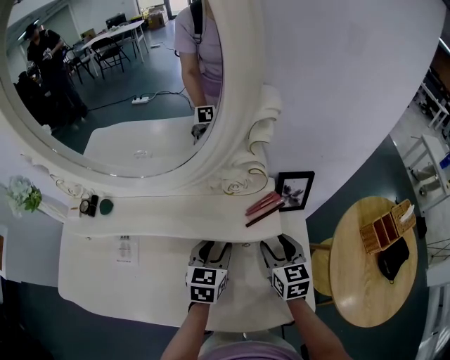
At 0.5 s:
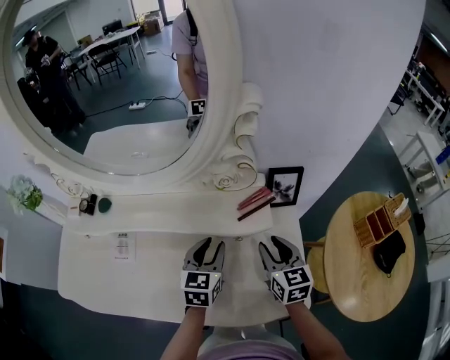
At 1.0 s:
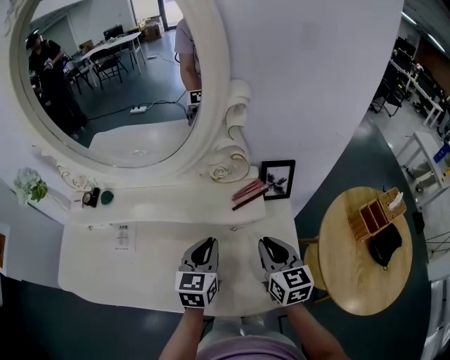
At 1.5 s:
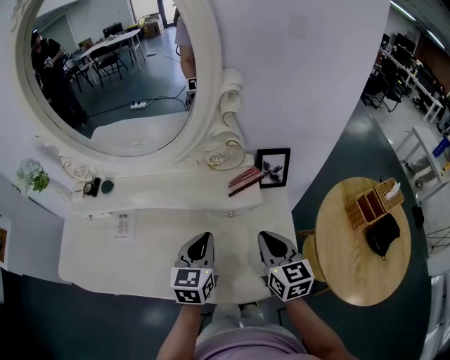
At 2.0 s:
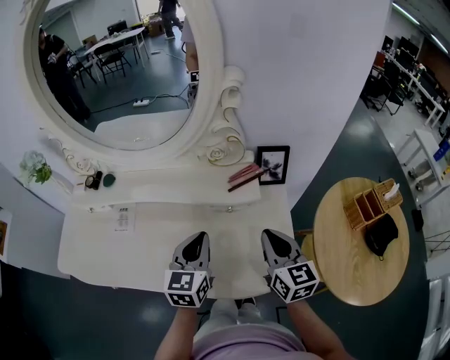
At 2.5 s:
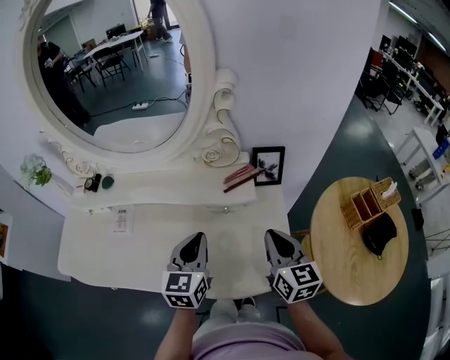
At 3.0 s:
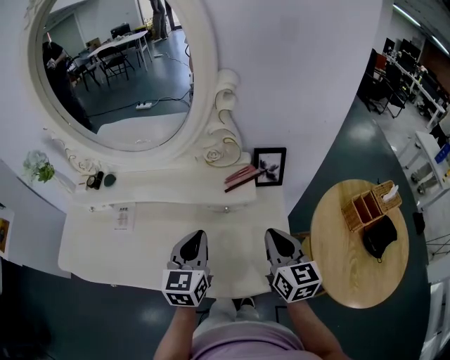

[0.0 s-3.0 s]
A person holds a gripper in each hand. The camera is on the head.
0.0 to 1.5 s: Both grippers move backward and upward, approximately 10 cm. The right gripper closes up, while the left gripper closes up.
1.5 to 3.0 s: The right gripper ends up approximately 5 cm from where it was.

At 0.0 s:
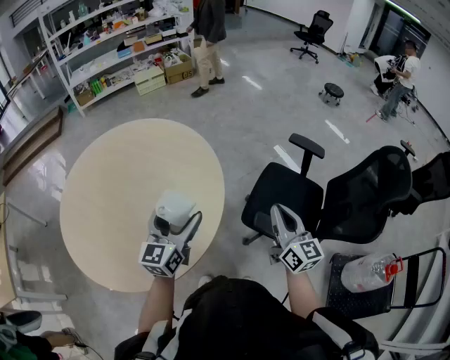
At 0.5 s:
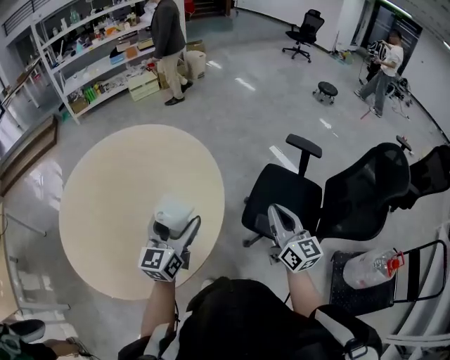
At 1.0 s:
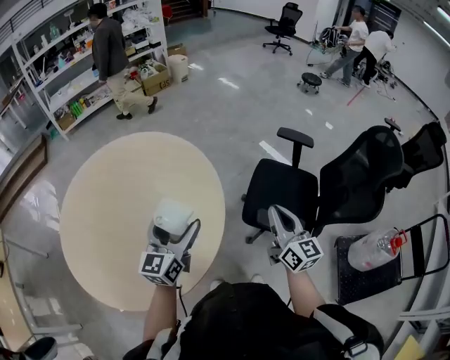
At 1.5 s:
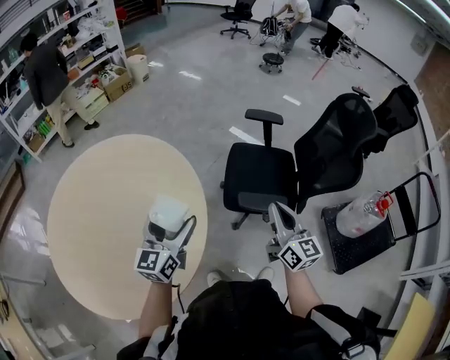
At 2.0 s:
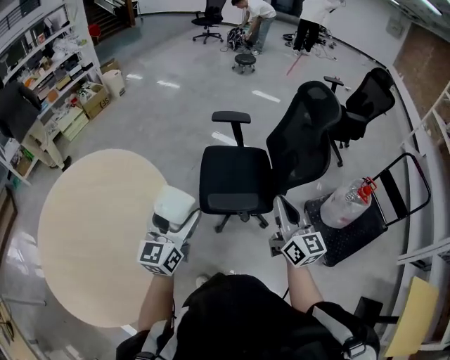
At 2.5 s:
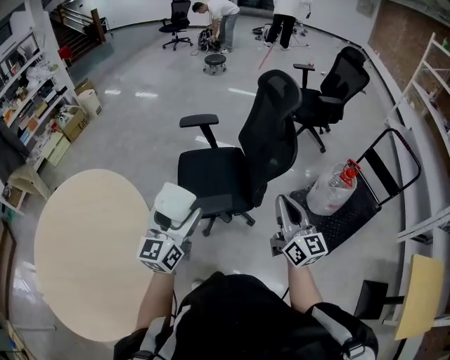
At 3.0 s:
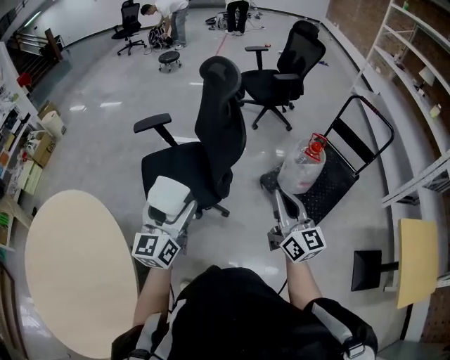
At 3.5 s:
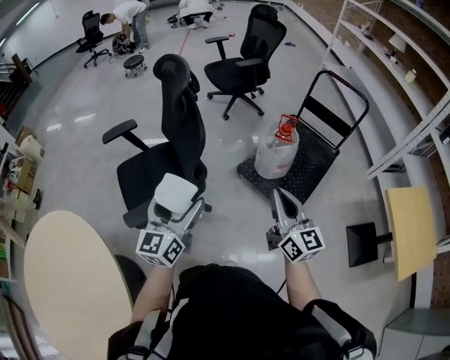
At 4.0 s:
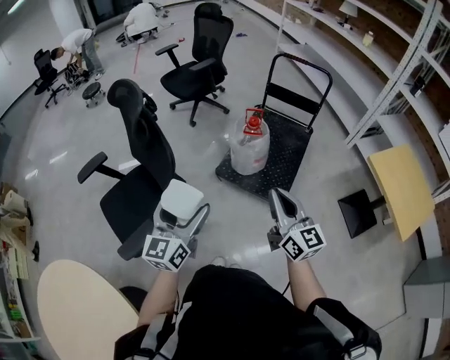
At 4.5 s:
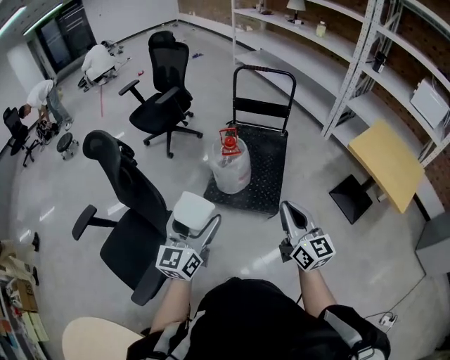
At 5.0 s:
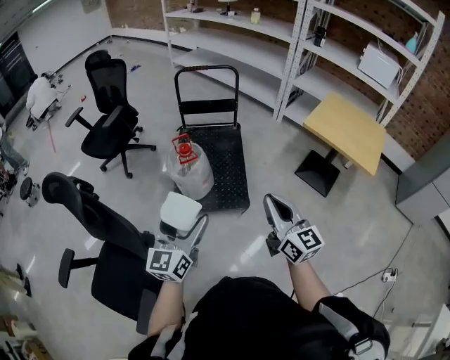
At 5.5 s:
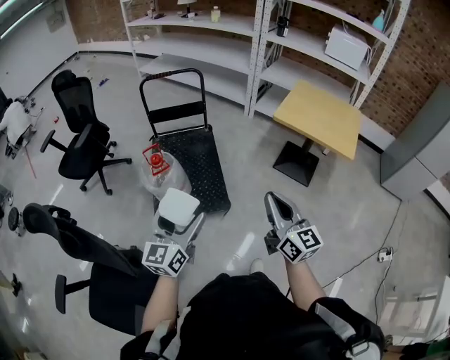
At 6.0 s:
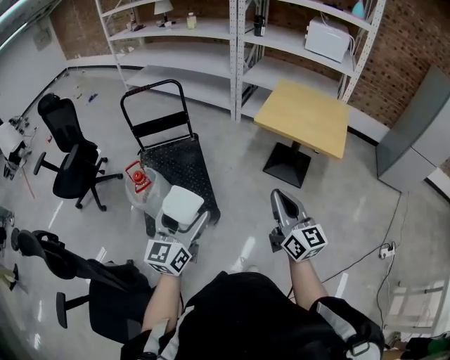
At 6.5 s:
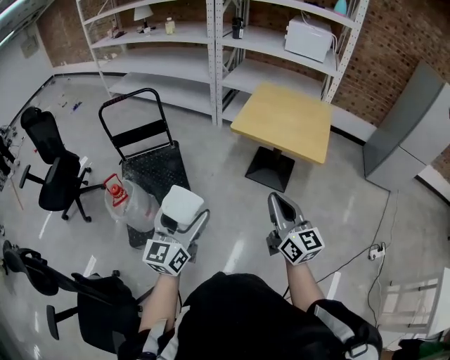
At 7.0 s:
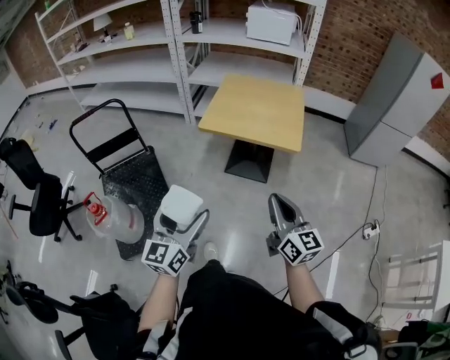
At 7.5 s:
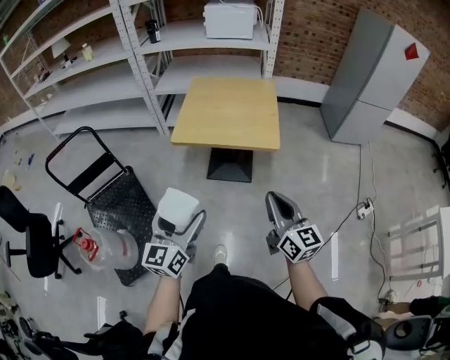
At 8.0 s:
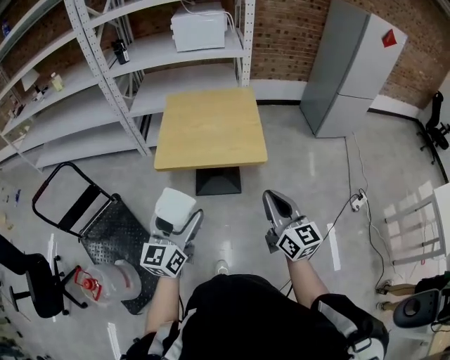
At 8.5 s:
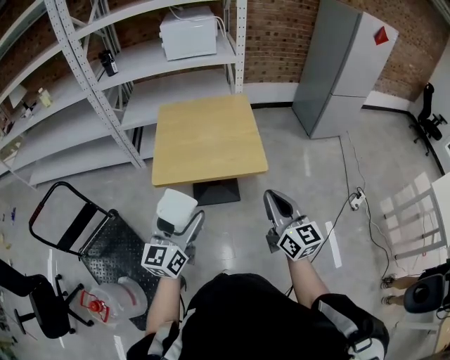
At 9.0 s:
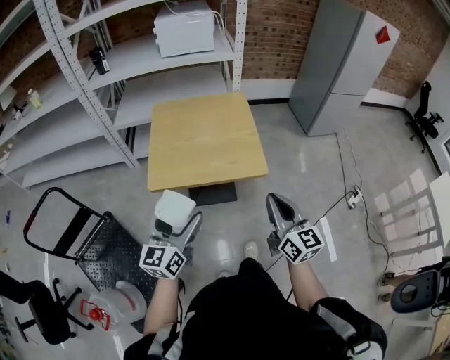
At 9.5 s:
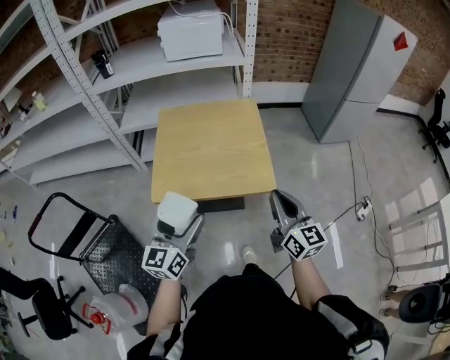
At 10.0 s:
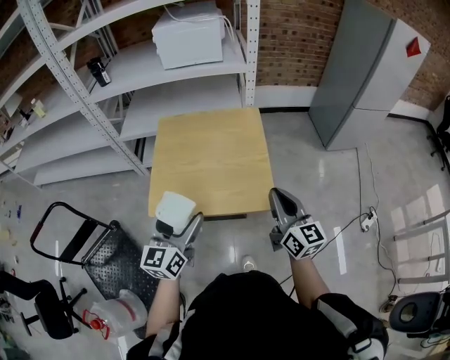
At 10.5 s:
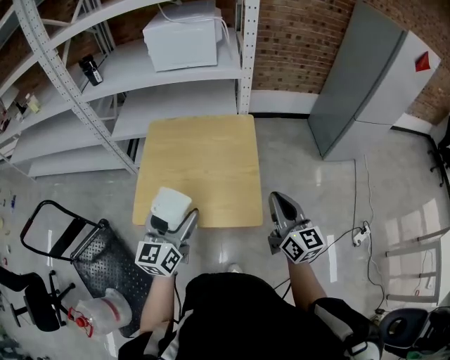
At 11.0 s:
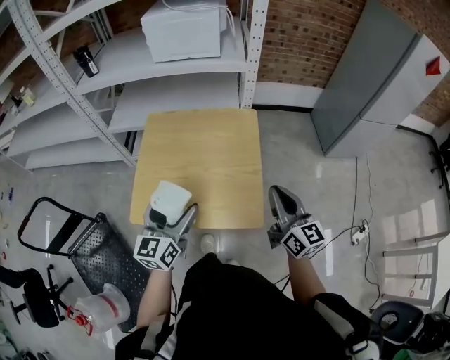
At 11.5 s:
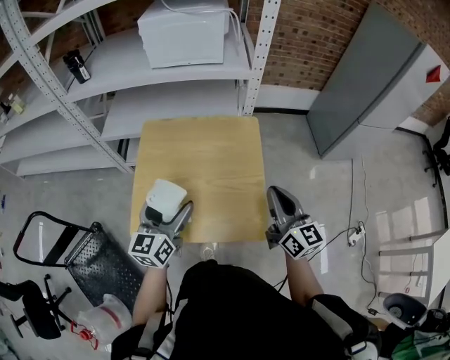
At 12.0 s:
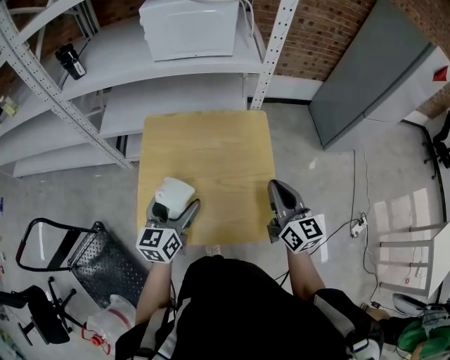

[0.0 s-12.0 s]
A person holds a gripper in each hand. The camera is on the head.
0.0 to 2.0 s: The left gripper changes place by some 15 cm, and swivels about 30 degrees. Meanwhile the right gripper shifts by approximately 20 cm, and changes its angle by approximately 30 degrees.
2.0 to 4.0 s: The left gripper ends up approximately 50 cm from where it was, and turns by some 50 degrees, while the right gripper moves approximately 40 cm, and rotates approximately 40 degrees.
4.0 to 6.0 s: The right gripper changes place by some 30 cm, and swivels roughly 50 degrees, while the left gripper ends up about 35 cm from where it was, and turns by about 50 degrees.
6.0 to 8.0 s: The left gripper changes place by approximately 40 cm, and swivels approximately 30 degrees, while the right gripper changes place by roughly 30 cm, and changes its angle by roughly 30 degrees.
8.0 to 10.0 s: Both grippers move forward, roughly 25 cm.
10.0 to 12.0 s: The right gripper heads forward, covering about 20 cm; the left gripper travels forward and downward by some 20 cm.

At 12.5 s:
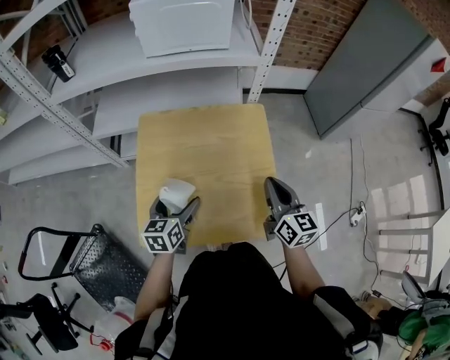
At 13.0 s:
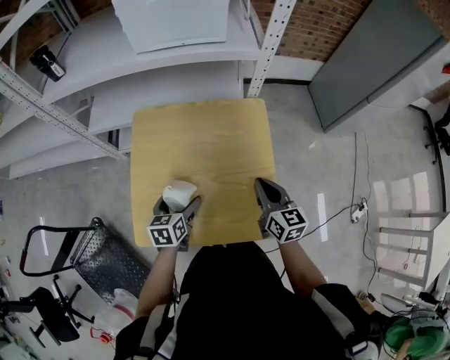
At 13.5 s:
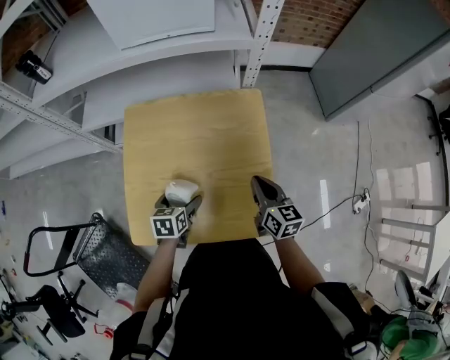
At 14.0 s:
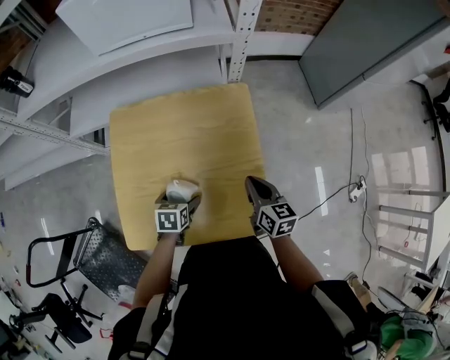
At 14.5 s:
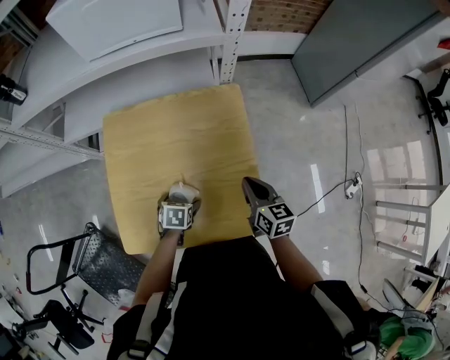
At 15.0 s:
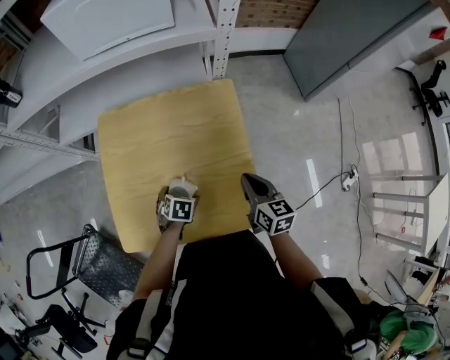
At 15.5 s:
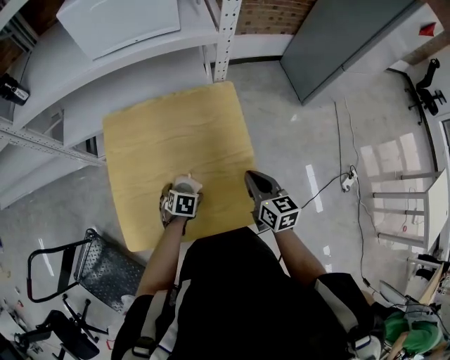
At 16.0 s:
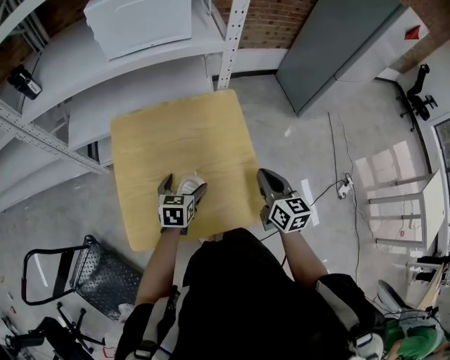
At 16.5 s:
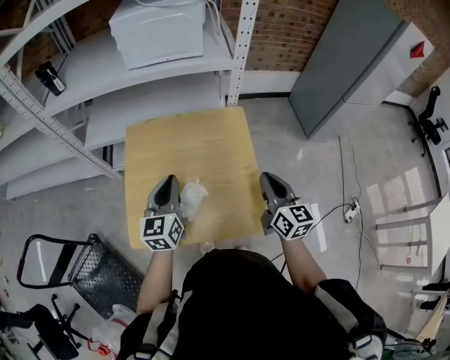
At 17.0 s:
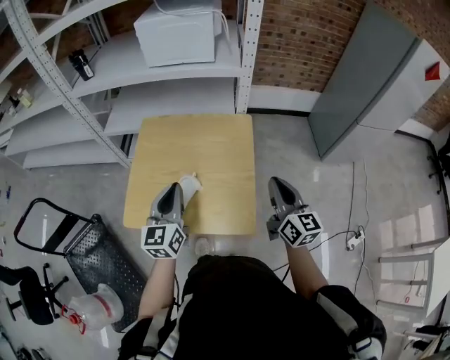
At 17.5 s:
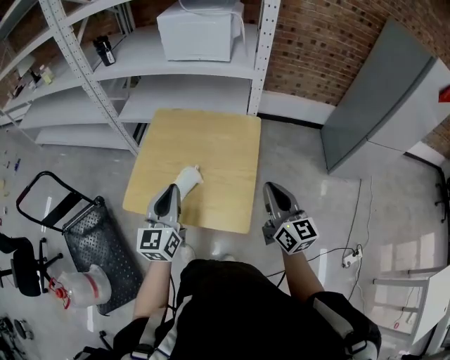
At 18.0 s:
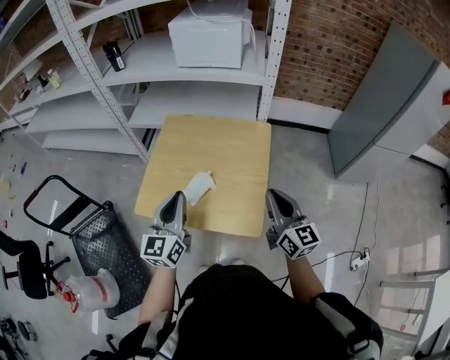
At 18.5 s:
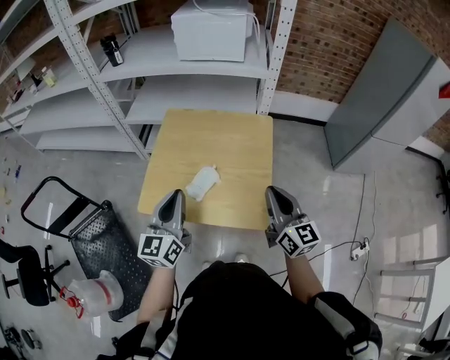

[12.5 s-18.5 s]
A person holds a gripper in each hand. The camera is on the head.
12.5 to 14.5 s: The left gripper is displaced downward and to the right by roughly 20 cm, and tilts its fingers about 40 degrees downward, while the right gripper is displaced downward by roughly 10 cm.
14.5 to 16.5 s: The left gripper shifts approximately 30 cm upward, tilts its fingers about 60 degrees upward, and closes, while the right gripper heads upward, covering about 15 cm, and rotates some 20 degrees.
16.5 to 18.5 s: The left gripper moves backward and upward, about 15 cm. Meanwhile the right gripper shifts approximately 10 cm backward and upward, and changes its angle by approximately 20 degrees.

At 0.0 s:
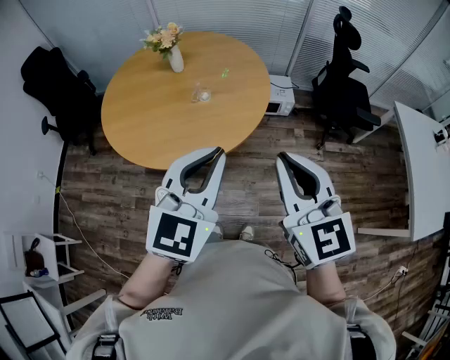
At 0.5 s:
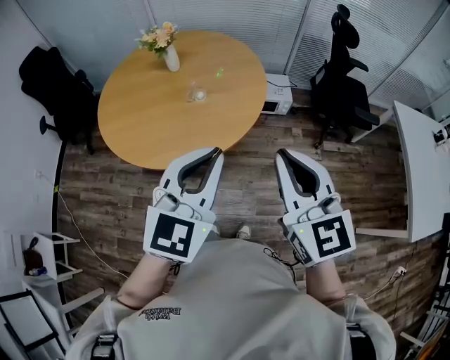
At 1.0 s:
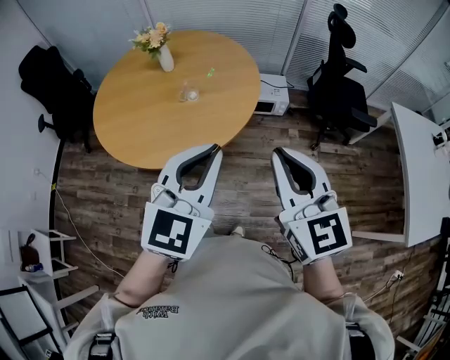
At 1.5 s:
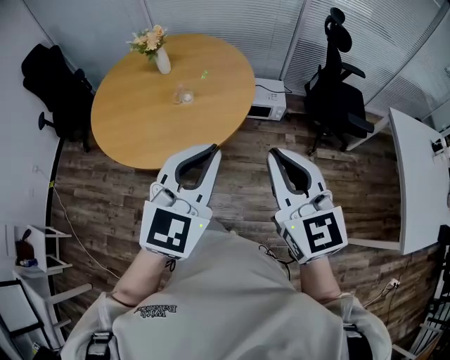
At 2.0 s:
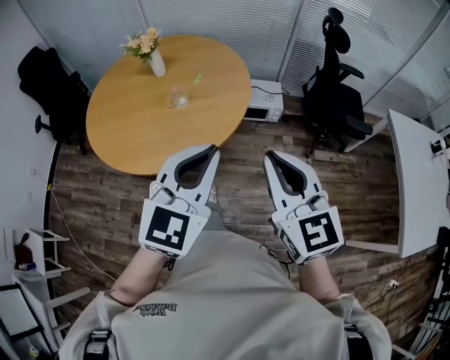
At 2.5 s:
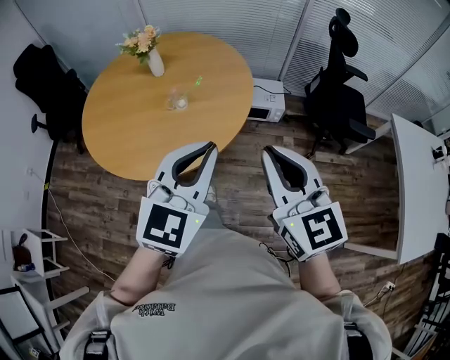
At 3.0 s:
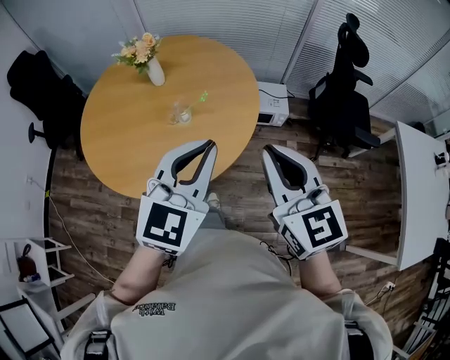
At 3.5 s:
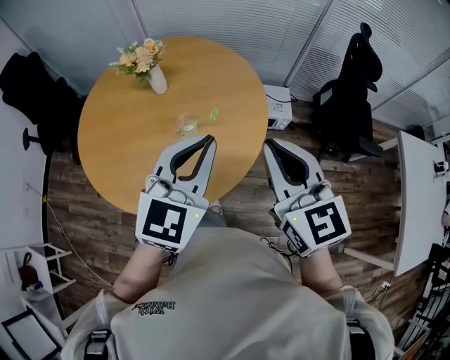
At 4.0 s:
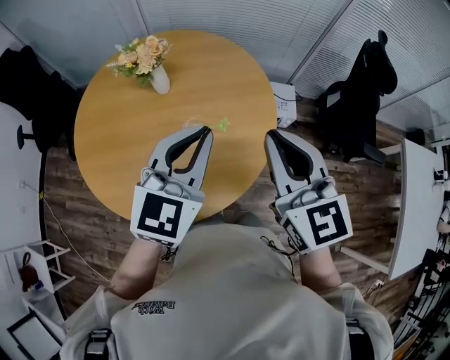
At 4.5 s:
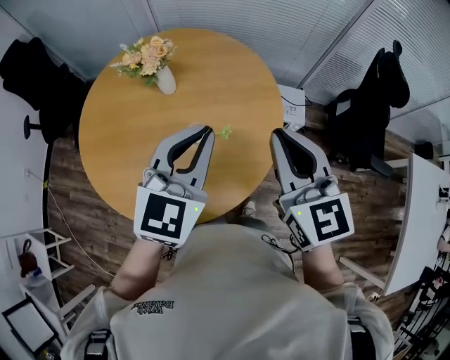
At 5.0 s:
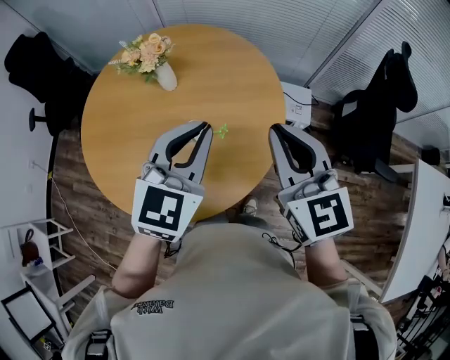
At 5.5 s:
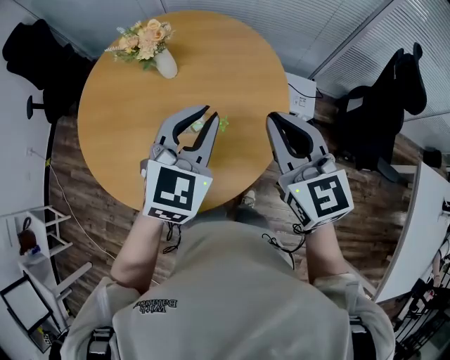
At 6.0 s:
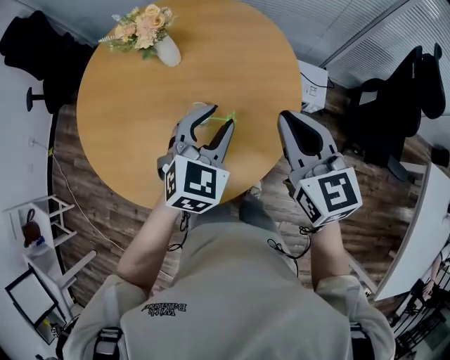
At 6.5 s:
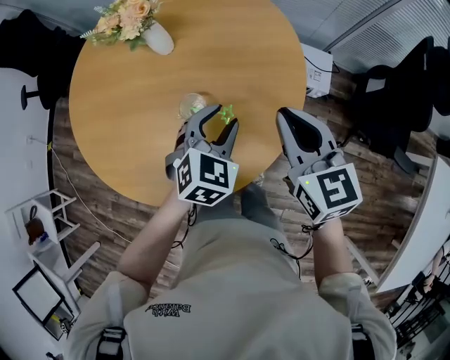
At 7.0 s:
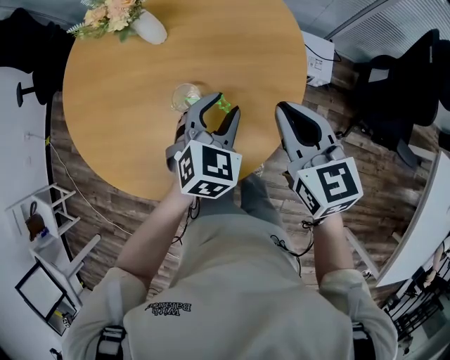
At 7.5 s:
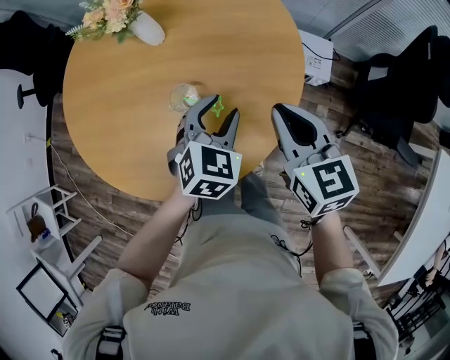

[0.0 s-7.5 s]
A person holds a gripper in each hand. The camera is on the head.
0.0 to 2.0 s: Both grippers move to the right, roughly 10 cm.
2.0 to 4.0 s: The two grippers go some 35 cm forward and to the left.
4.0 to 5.5 s: Both grippers move forward and downward, roughly 10 cm.
5.5 to 7.5 s: The grippers both shift downward by about 15 cm. The left gripper rotates some 20 degrees, and opens up.
